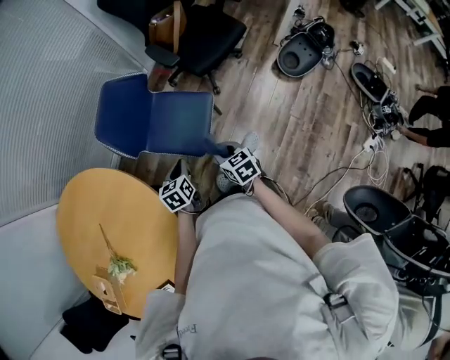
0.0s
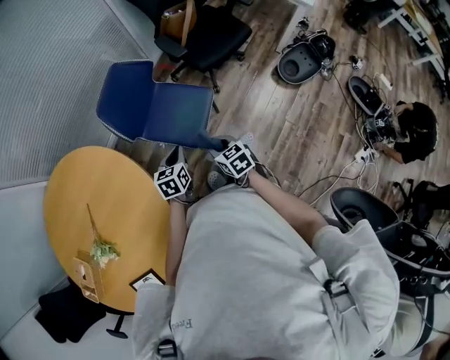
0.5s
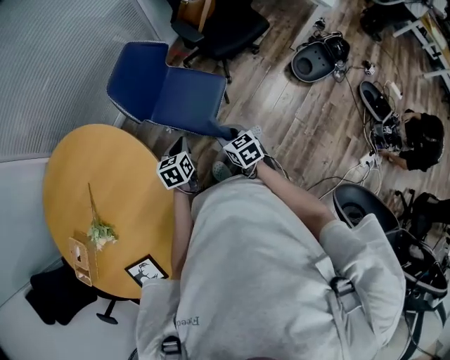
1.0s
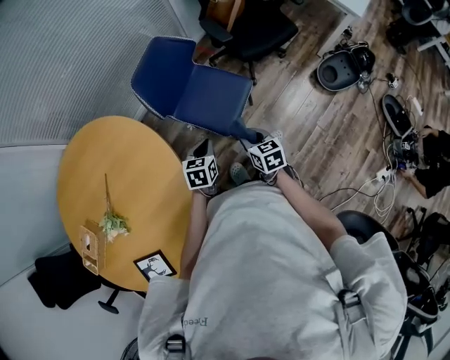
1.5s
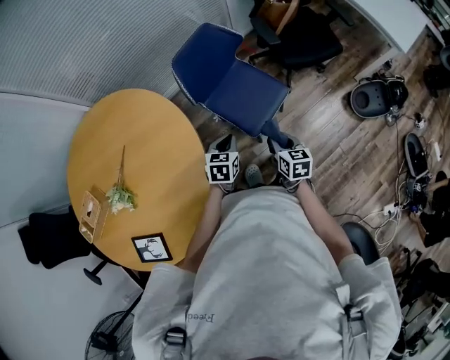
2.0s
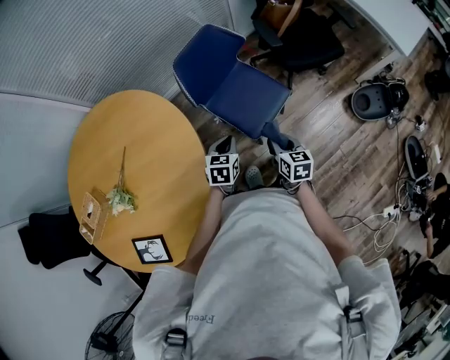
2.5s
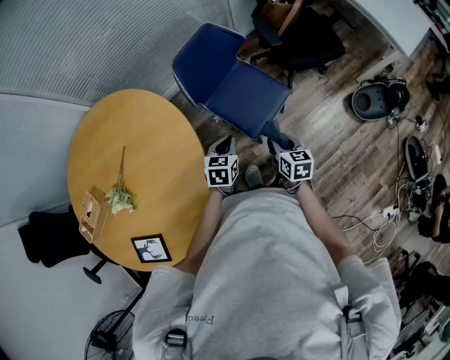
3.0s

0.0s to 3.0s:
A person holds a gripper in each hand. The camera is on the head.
0.0s to 1.5s: The left gripper moves about 5 cm.
1.5s to 3.0s: The grippers move only a little.

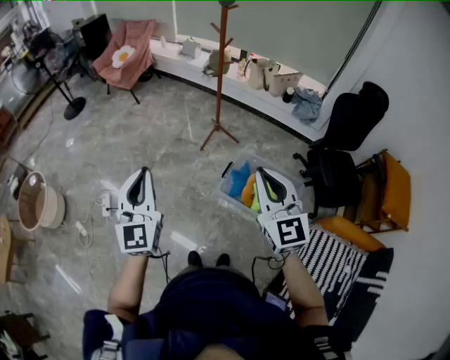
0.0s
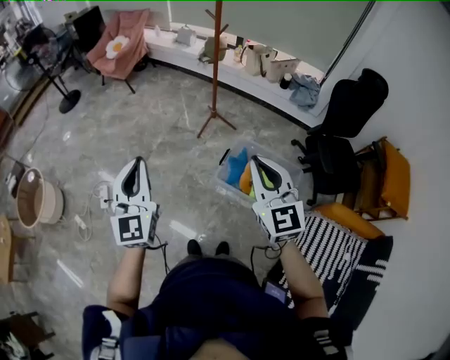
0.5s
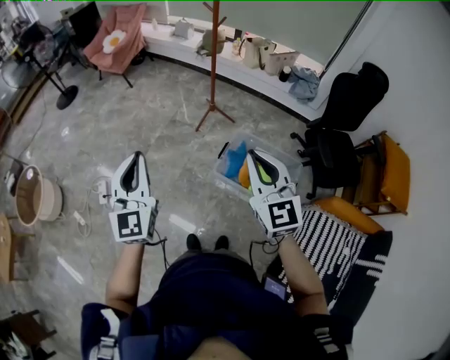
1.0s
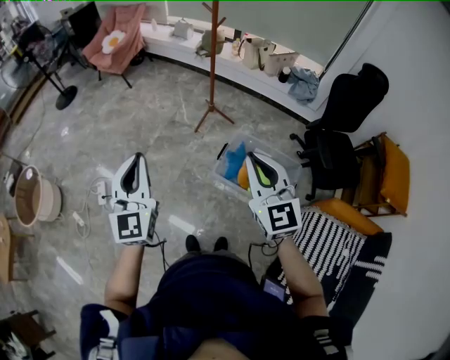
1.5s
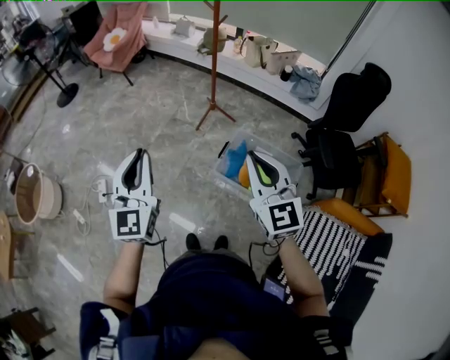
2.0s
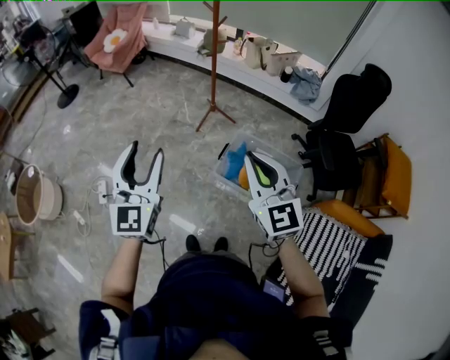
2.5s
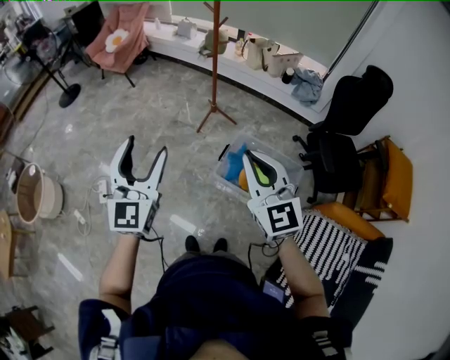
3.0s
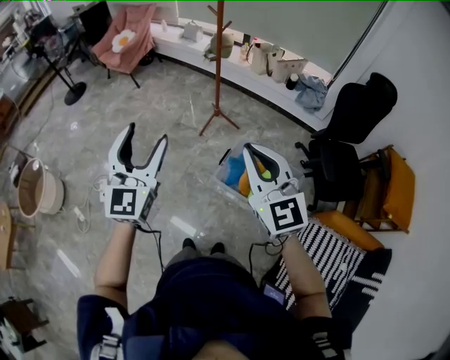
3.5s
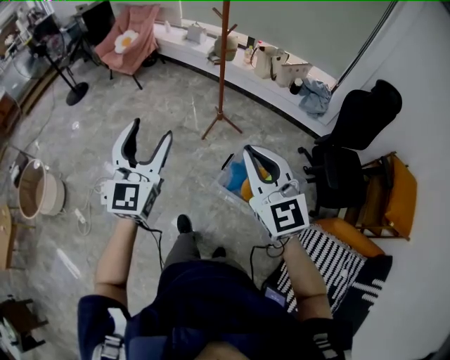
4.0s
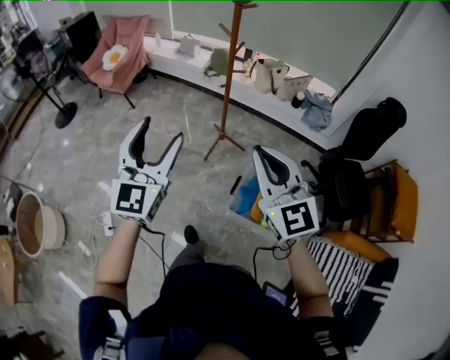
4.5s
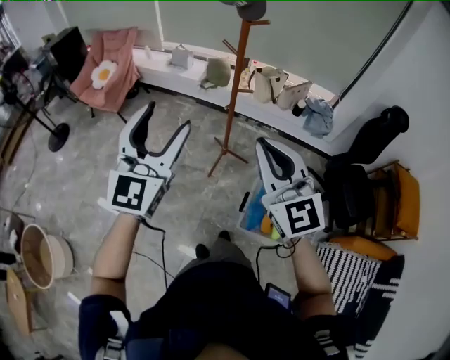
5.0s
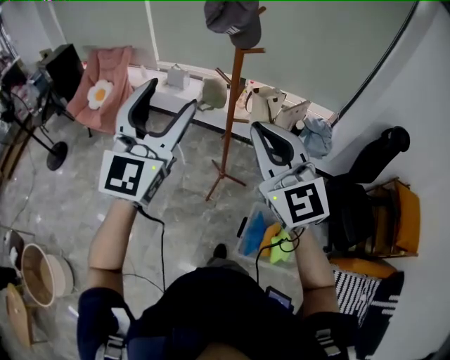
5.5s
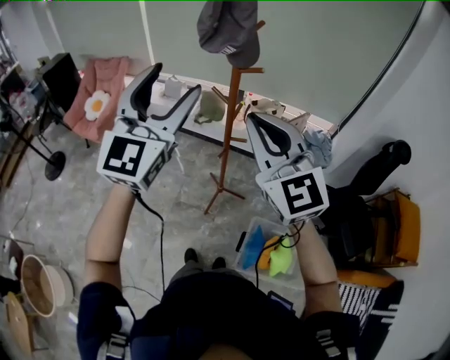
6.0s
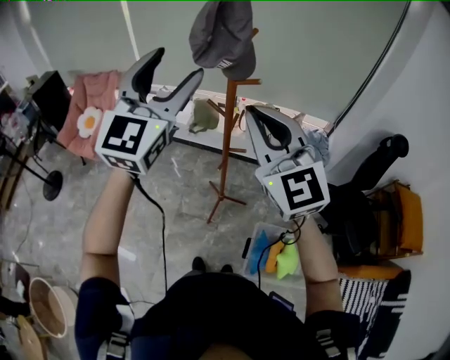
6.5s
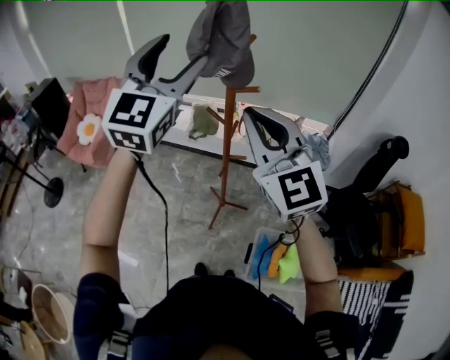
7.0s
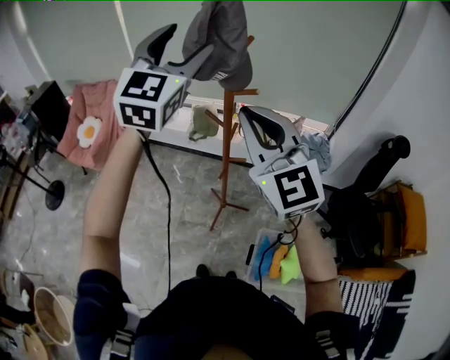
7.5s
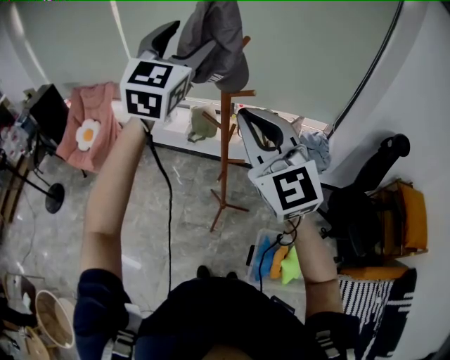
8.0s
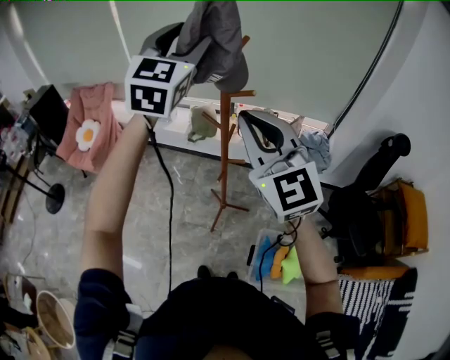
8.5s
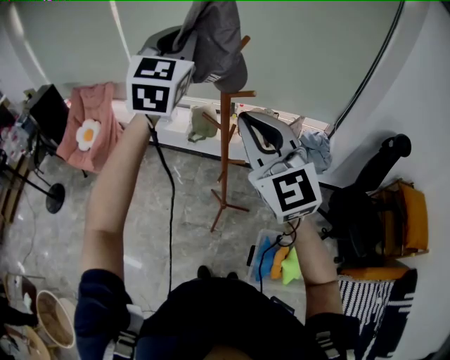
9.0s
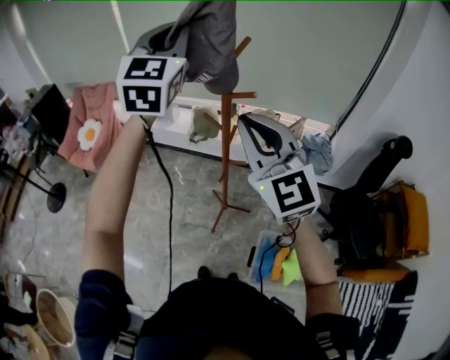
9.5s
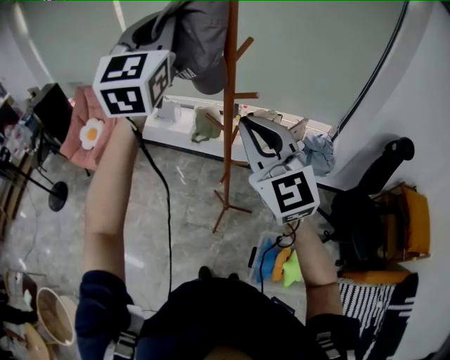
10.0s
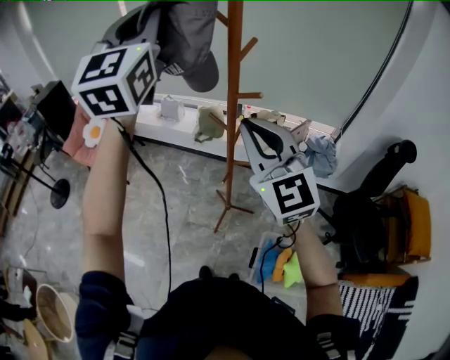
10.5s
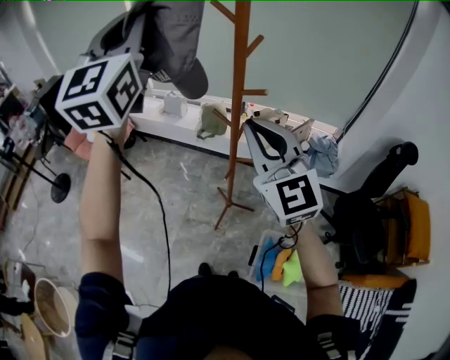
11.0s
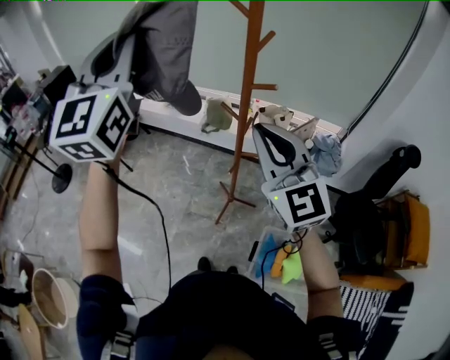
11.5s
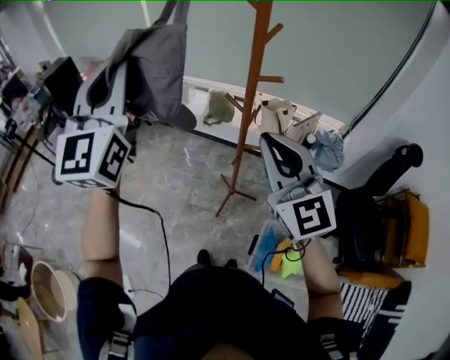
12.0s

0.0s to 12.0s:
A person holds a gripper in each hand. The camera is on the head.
0.0s to 2.0s: There are only small adjustments of the grippers.
2.0s to 4.0s: The right gripper heads forward, covering roughly 5 cm. Meanwhile the left gripper travels forward and to the right by some 10 cm, and opens.
4.0s to 6.0s: Both grippers are carried forward, some 60 cm. The left gripper turns by approximately 20 degrees.
6.0s to 8.0s: The left gripper moves forward, about 20 cm. Meanwhile the right gripper goes some 10 cm forward.
8.0s to 10.0s: The left gripper travels upward by roughly 5 cm, and closes up.
10.0s to 12.0s: The right gripper heads backward, covering about 5 cm, while the left gripper is displaced to the left, backward and downward by roughly 20 cm.

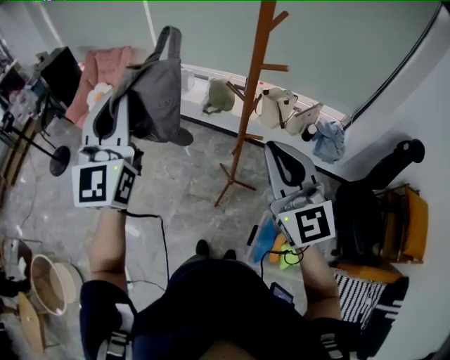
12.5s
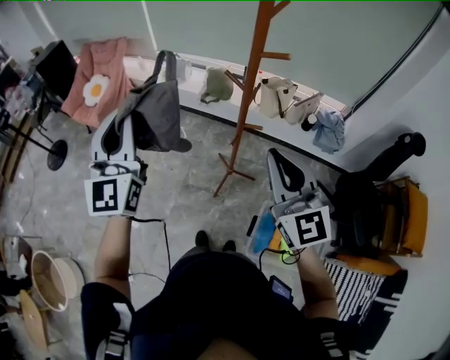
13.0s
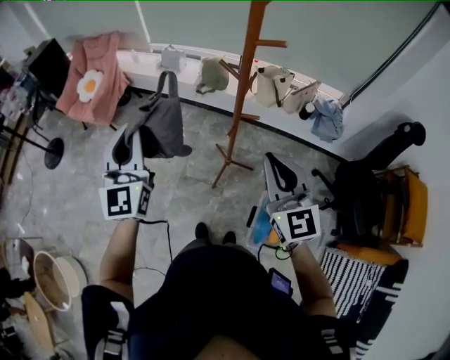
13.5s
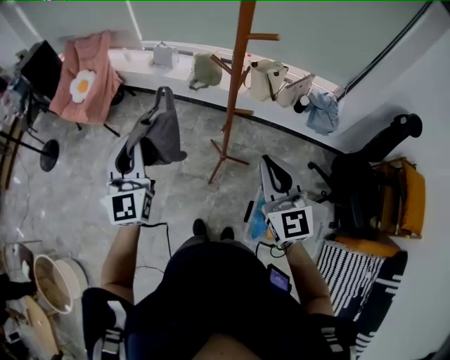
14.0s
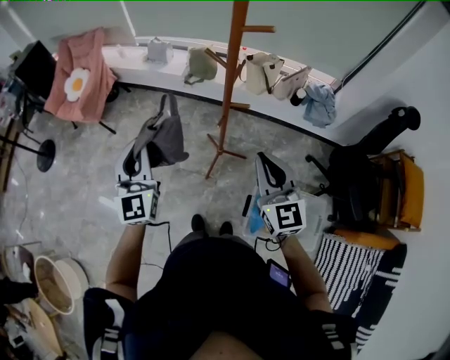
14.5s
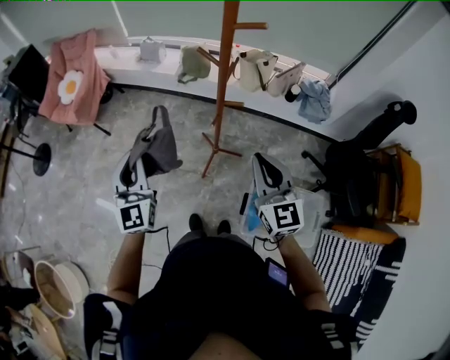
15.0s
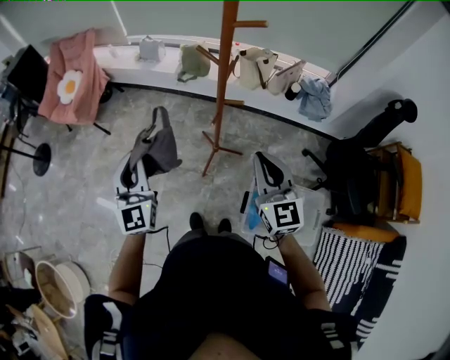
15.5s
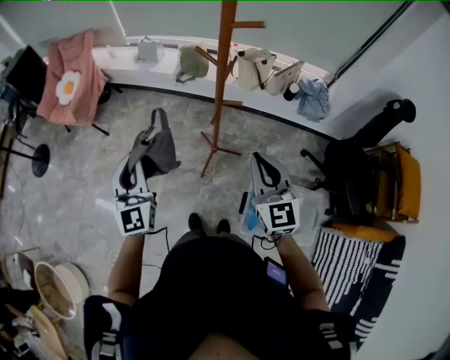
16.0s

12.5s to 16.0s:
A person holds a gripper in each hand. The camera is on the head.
12.5s to 14.5s: Both grippers move downward, some 20 cm.
14.5s to 16.0s: The grippers stay close to where they were, moving slightly.

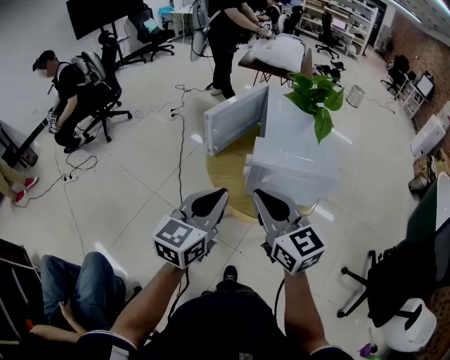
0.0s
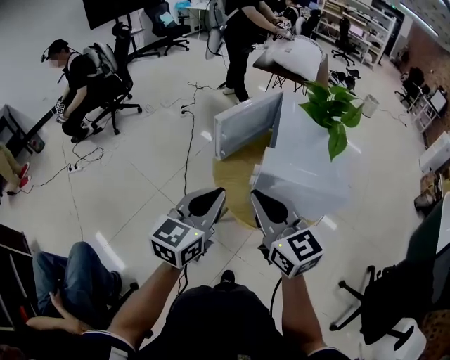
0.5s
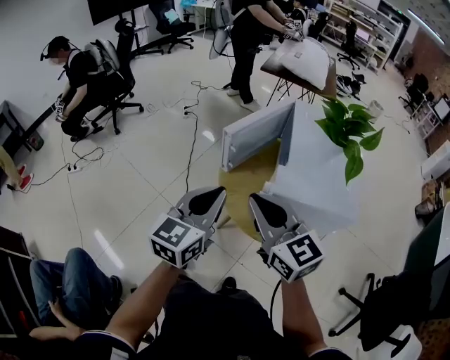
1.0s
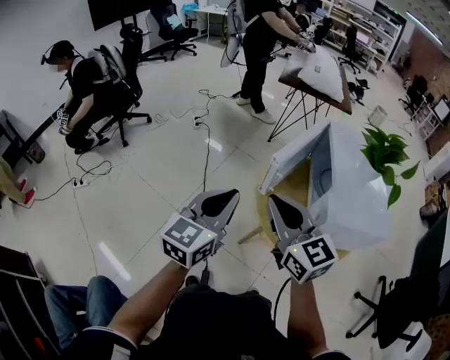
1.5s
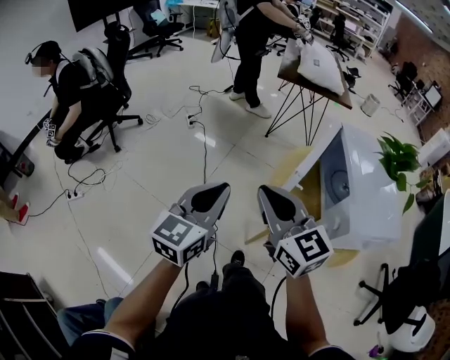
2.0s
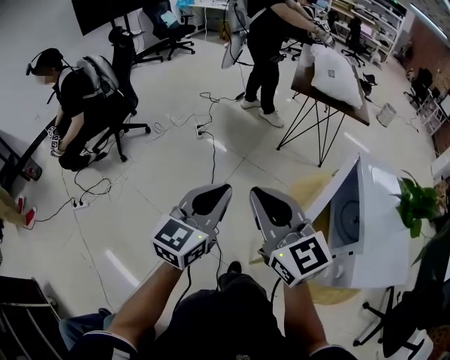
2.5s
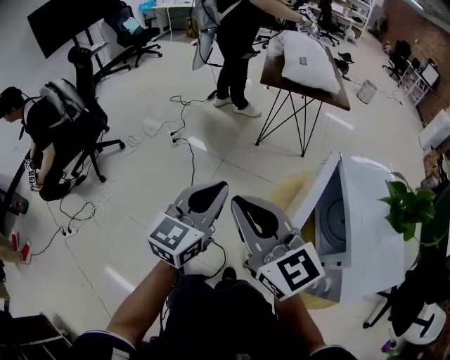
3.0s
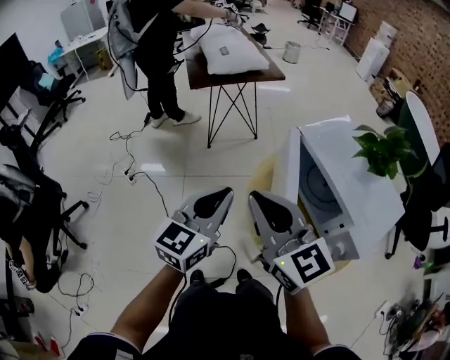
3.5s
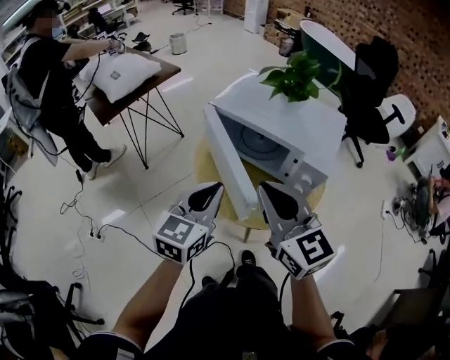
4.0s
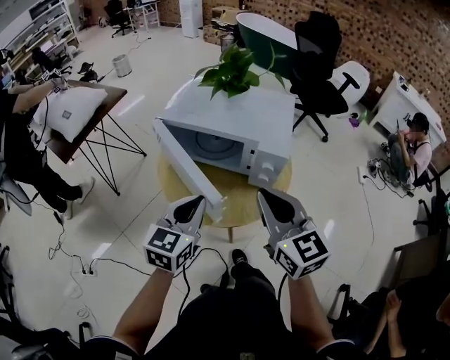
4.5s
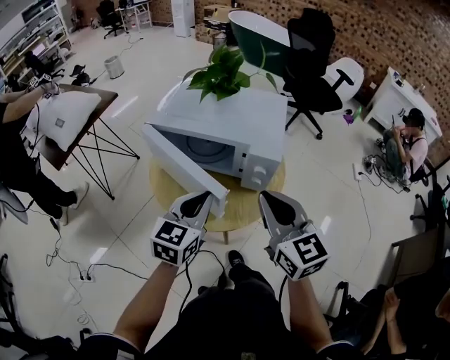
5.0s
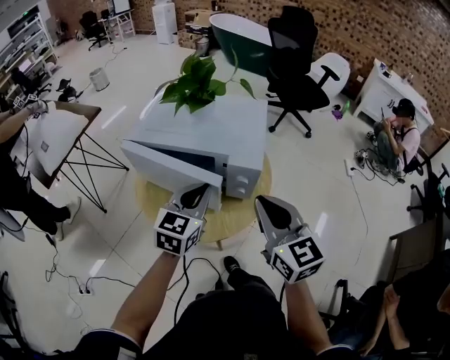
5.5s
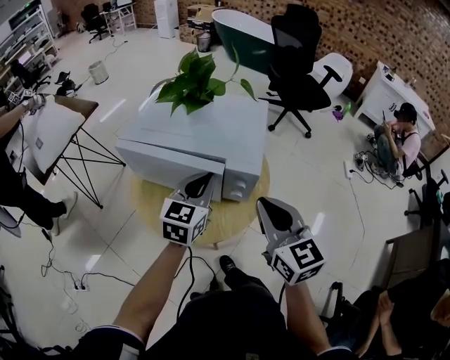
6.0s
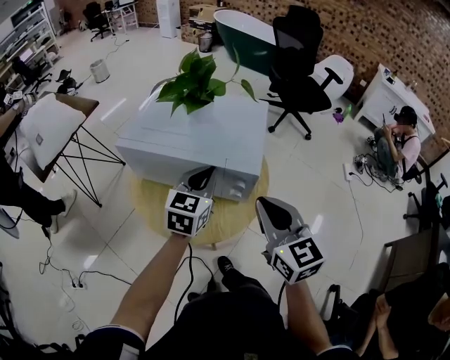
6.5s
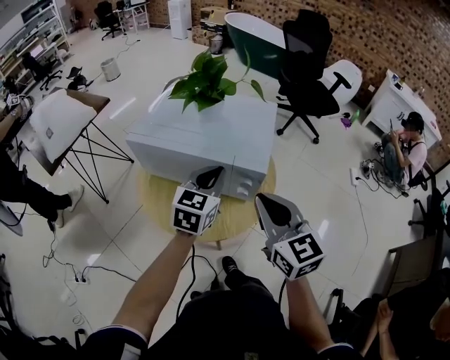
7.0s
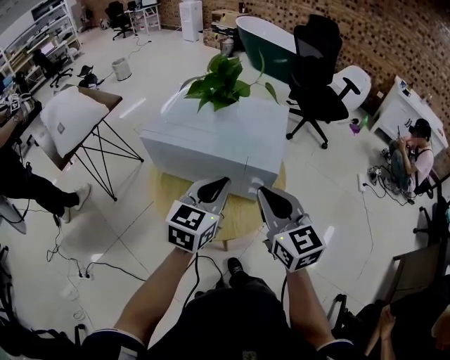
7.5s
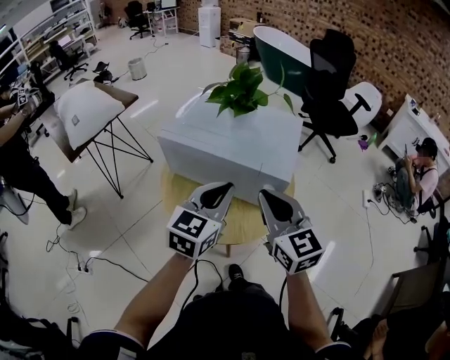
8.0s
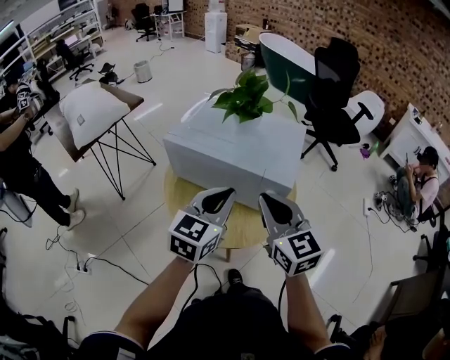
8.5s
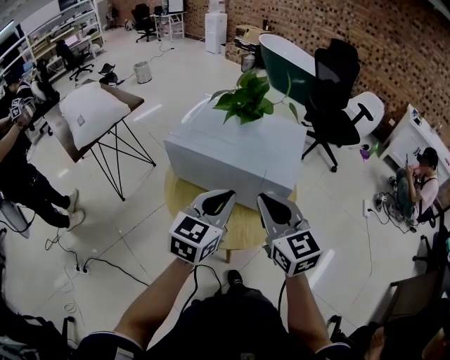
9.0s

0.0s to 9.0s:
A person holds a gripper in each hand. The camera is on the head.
0.0s to 2.0s: Both grippers travel together to the left and forward, roughly 30 cm.
2.0s to 4.5s: The left gripper shifts by approximately 25 cm, and turns by some 70 degrees, while the right gripper changes place by about 15 cm, and changes its angle by some 80 degrees.
4.5s to 7.0s: The left gripper moves forward and to the right, about 20 cm. Meanwhile the right gripper is displaced to the right by roughly 5 cm.
7.0s to 9.0s: The left gripper heads backward and to the left, covering approximately 10 cm, while the right gripper travels to the left by approximately 5 cm.
